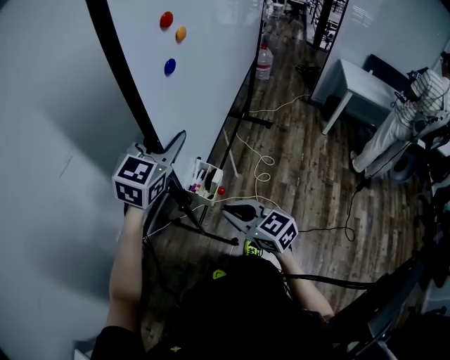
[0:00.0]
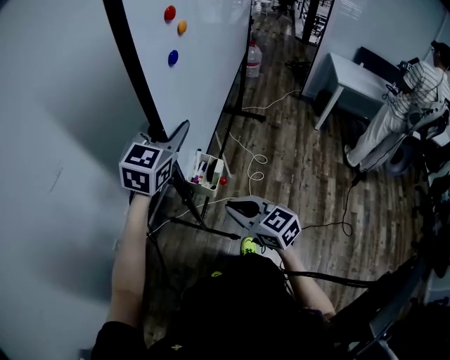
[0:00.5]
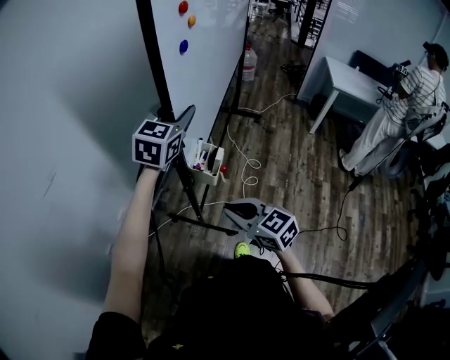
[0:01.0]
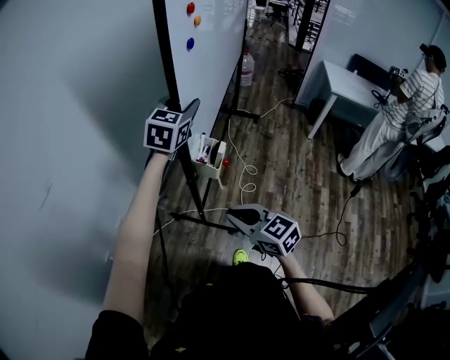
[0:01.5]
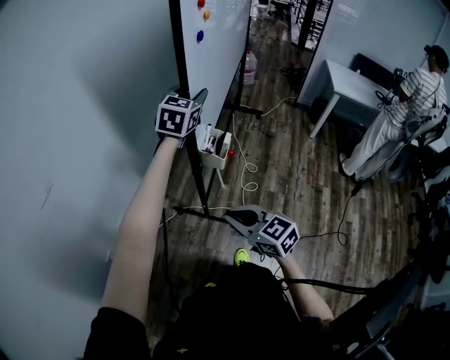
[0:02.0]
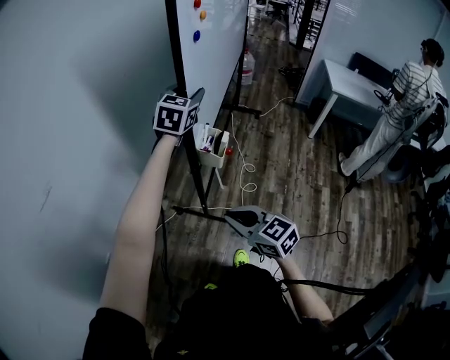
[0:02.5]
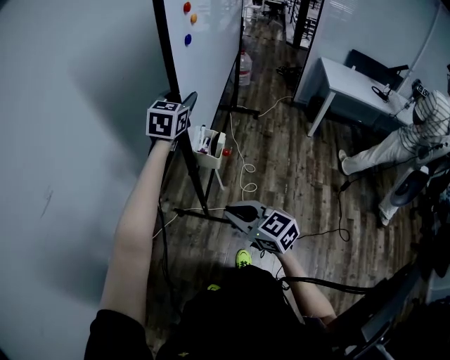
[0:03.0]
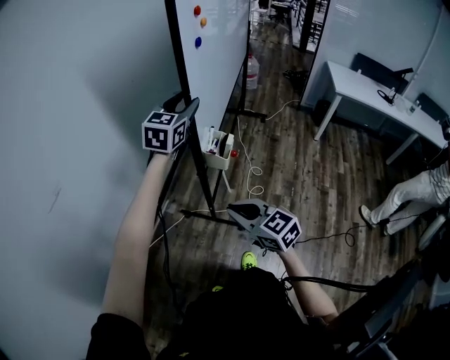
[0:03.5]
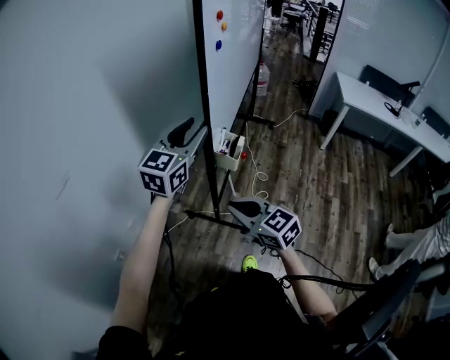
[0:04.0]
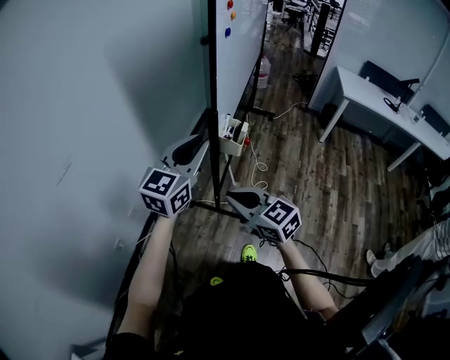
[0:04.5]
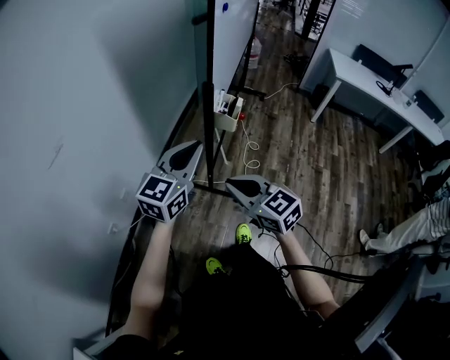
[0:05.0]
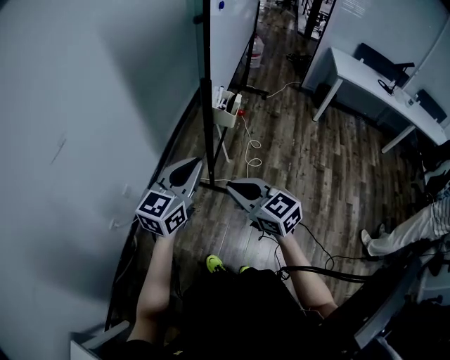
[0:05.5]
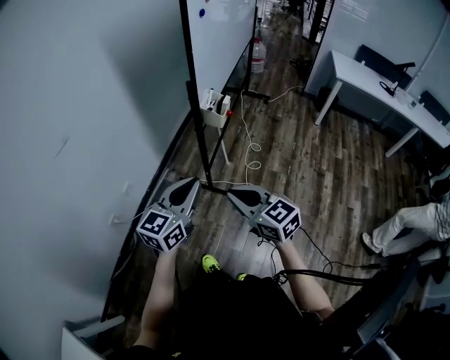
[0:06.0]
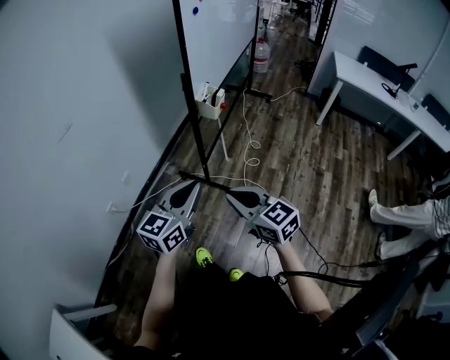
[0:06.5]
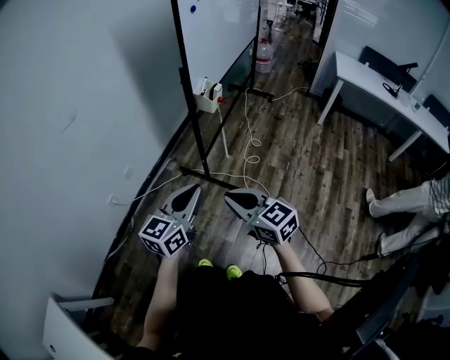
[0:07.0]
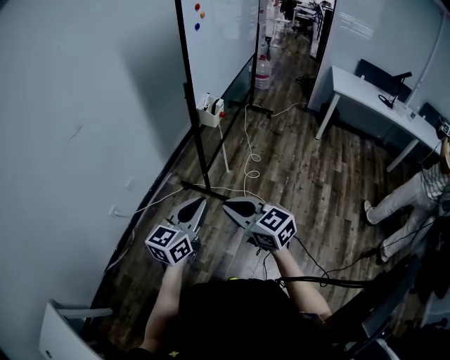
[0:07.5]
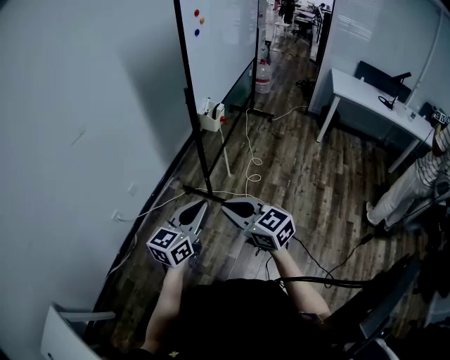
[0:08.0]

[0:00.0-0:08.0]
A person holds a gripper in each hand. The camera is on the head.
0:00.0 to 0:02.0: The right gripper is displaced to the right by about 10 cm. The left gripper goes about 25 cm forward and to the right.
0:02.0 to 0:04.0: The left gripper travels backward and to the left by some 15 cm.
0:04.0 to 0:06.0: The right gripper travels backward by some 15 cm. The left gripper moves backward and downward, roughly 30 cm, and closes up.
0:06.0 to 0:08.0: Both grippers move backward, about 15 cm.

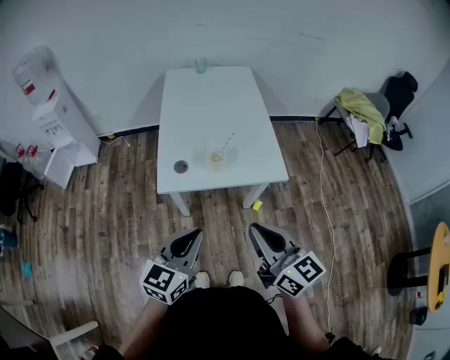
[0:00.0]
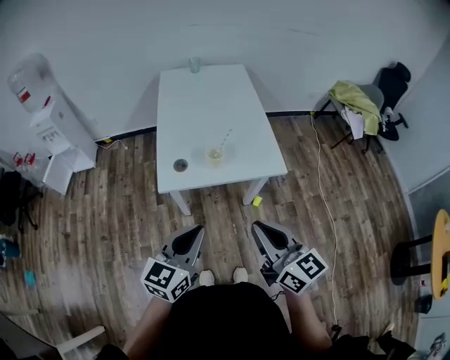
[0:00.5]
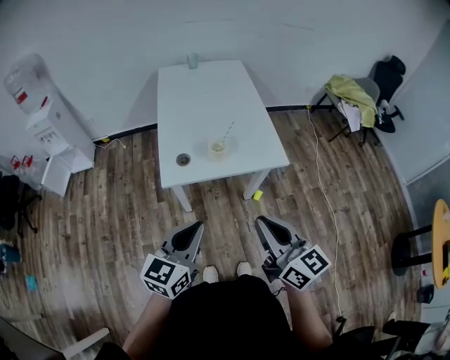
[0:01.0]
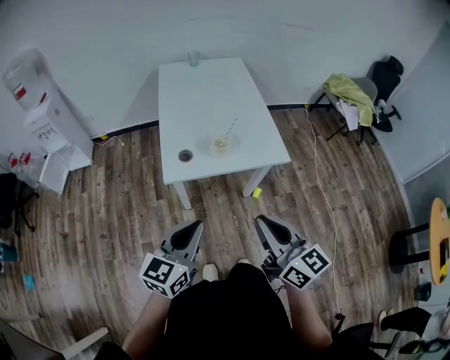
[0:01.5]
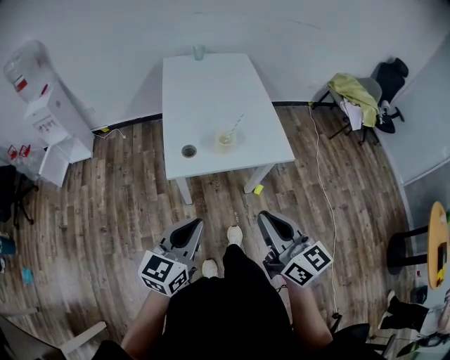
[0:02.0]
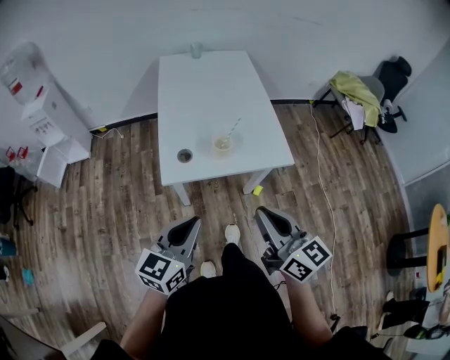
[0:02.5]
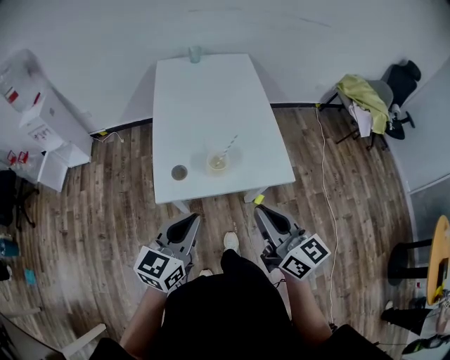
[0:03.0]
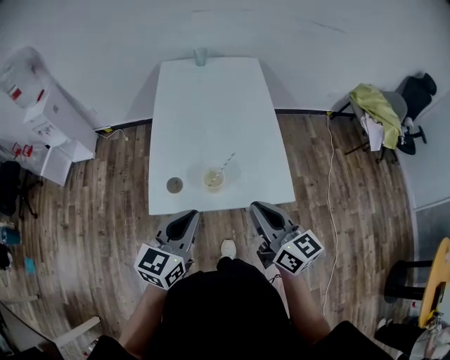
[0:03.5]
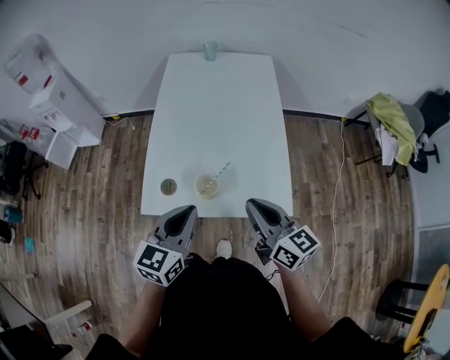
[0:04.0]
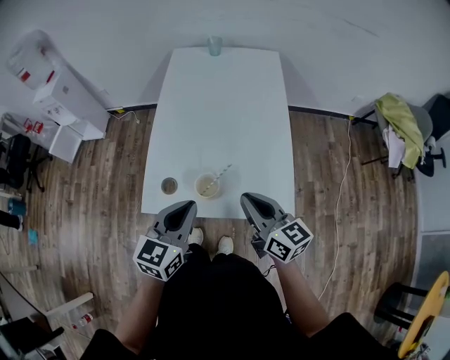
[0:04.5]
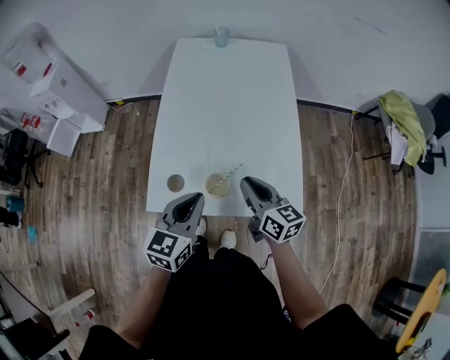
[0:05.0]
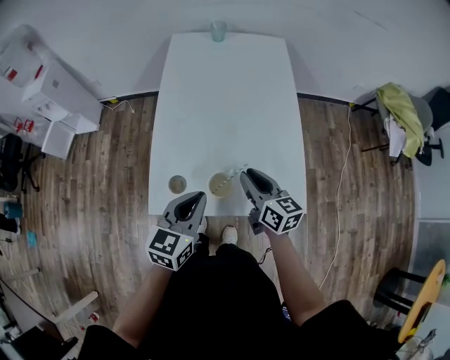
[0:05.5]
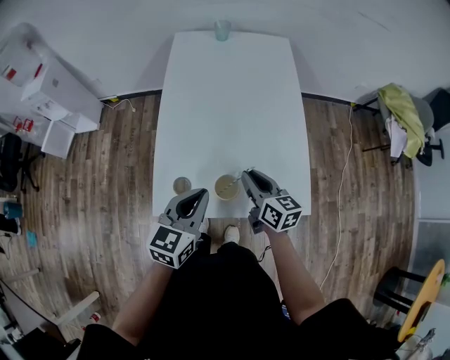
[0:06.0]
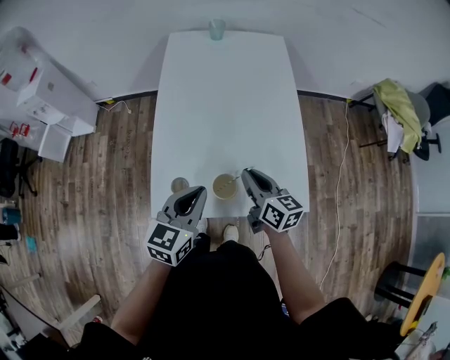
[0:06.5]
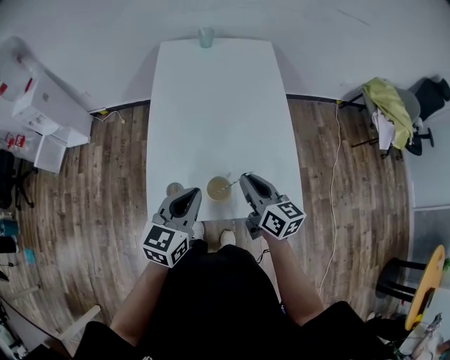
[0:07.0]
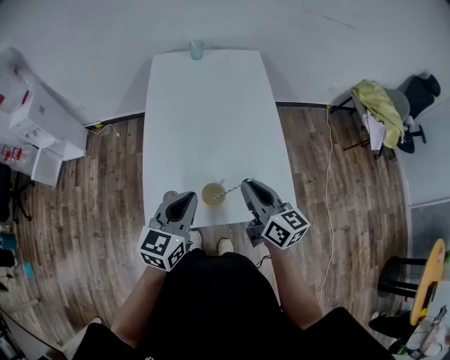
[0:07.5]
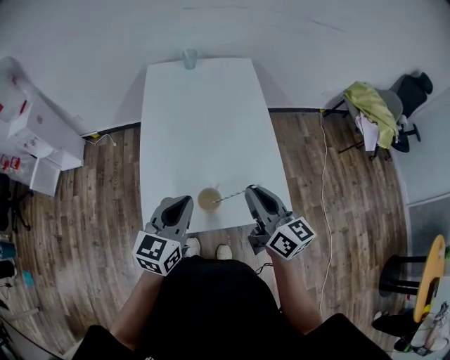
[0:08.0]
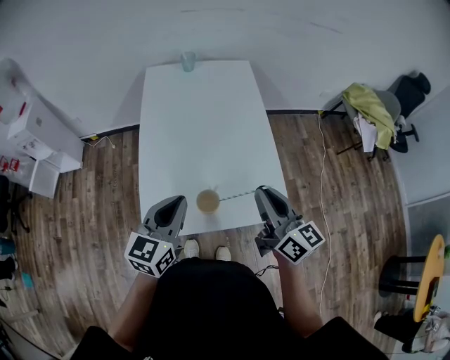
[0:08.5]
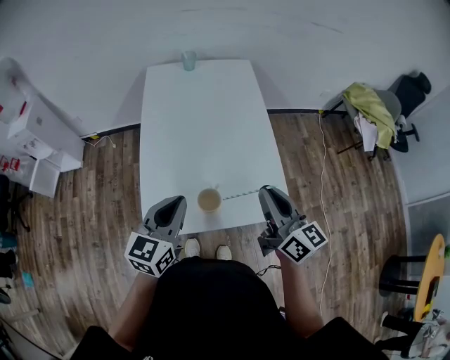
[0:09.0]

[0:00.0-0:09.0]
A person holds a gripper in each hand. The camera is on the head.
0:00.0 to 0:02.0: The left gripper heads to the left, covering approximately 5 cm; the right gripper moves about 5 cm.
0:02.0 to 0:04.5: The right gripper moves forward, some 30 cm. The left gripper moves forward and to the right, roughly 30 cm.
0:04.5 to 0:07.0: The left gripper shifts some 5 cm forward; the right gripper goes roughly 10 cm forward and downward.
0:07.0 to 0:09.0: The right gripper heads upward and to the right, covering approximately 15 cm, while the left gripper shifts by some 5 cm.

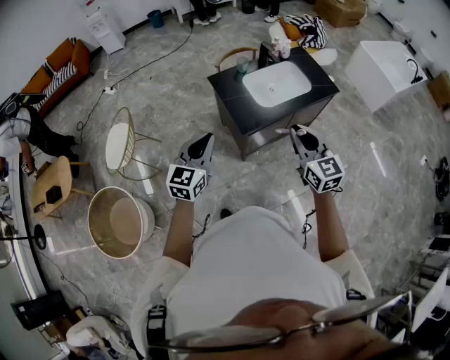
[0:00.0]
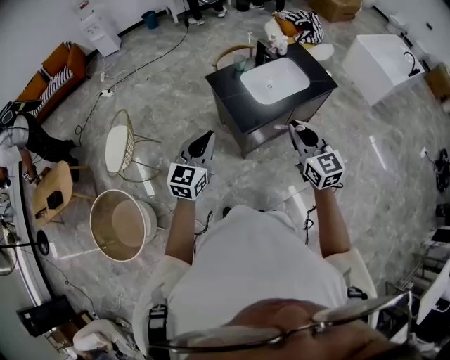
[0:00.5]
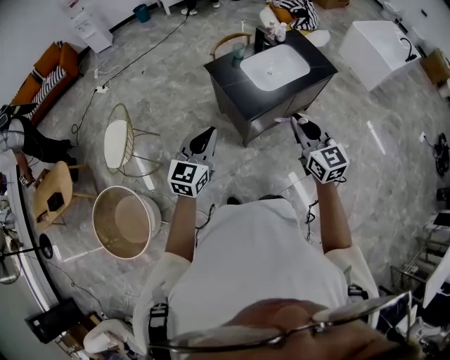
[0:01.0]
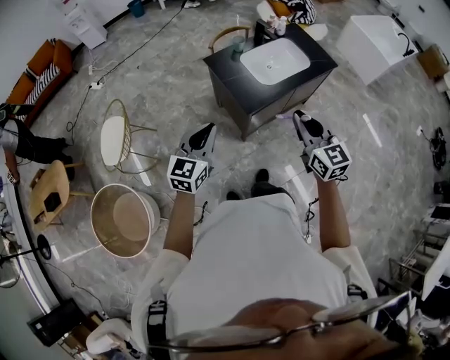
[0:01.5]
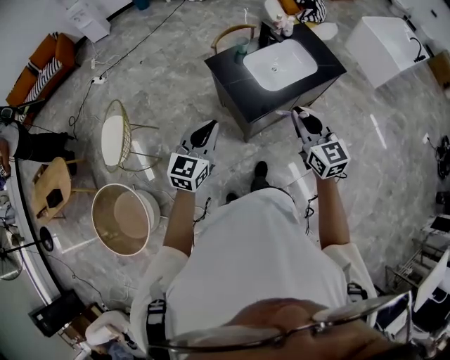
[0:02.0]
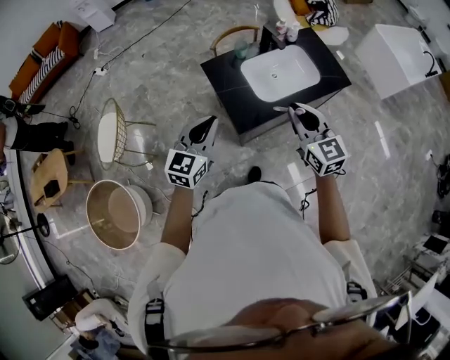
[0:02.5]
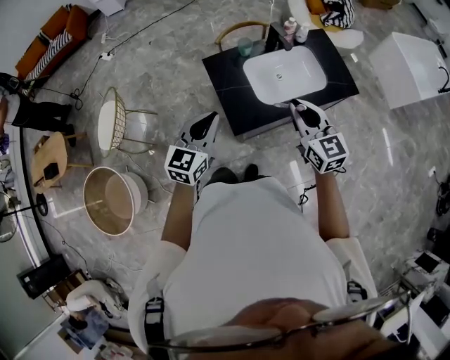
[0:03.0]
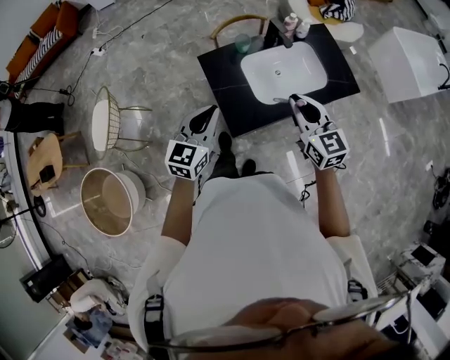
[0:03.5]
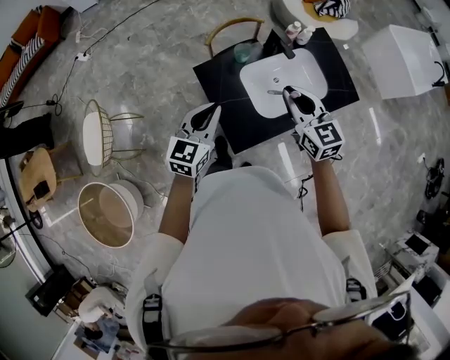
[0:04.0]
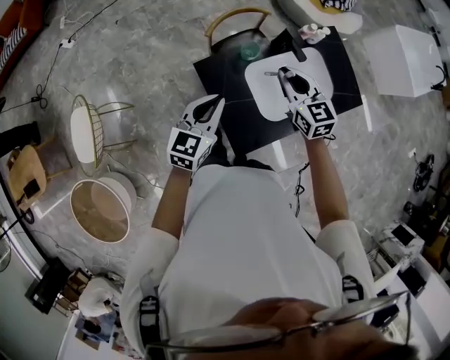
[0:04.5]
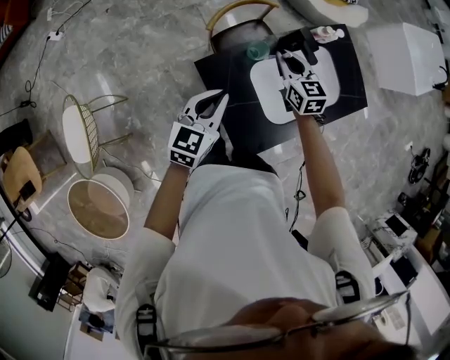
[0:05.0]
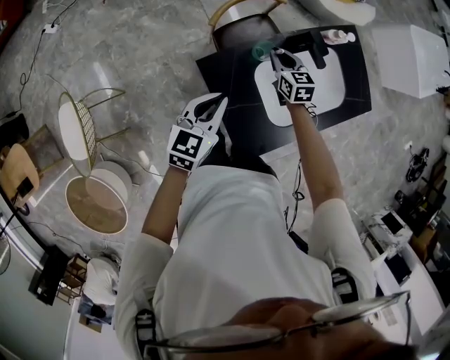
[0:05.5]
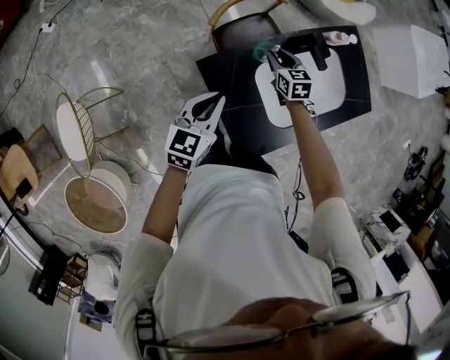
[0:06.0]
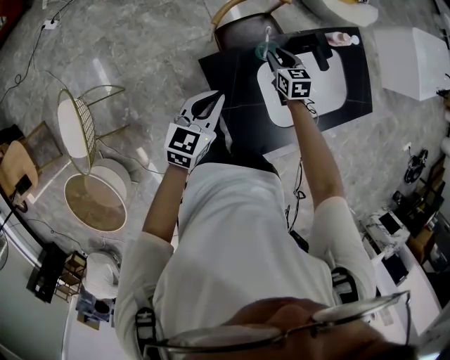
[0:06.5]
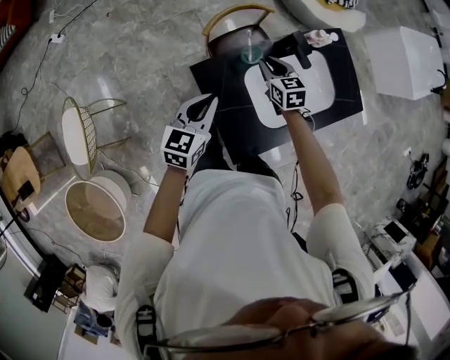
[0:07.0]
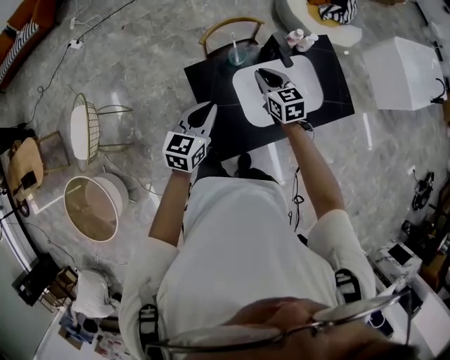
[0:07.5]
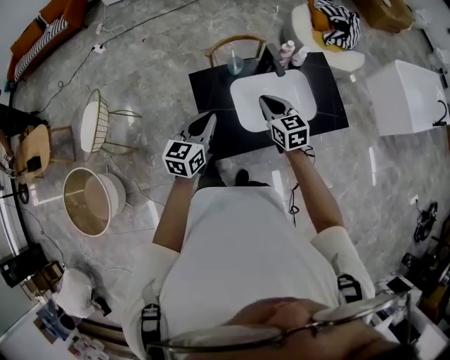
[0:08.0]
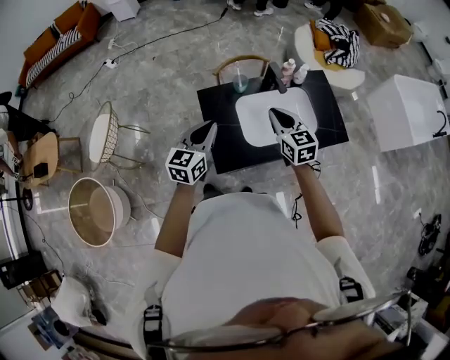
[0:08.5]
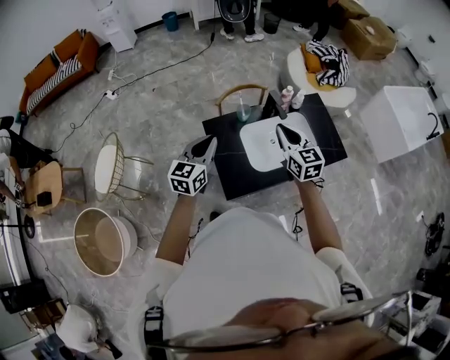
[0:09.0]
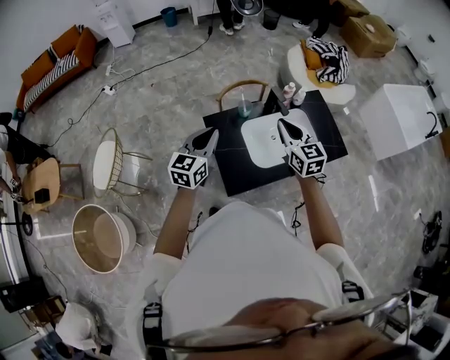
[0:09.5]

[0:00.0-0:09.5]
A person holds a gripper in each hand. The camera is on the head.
0:00.0 to 0:02.0: The grippers both shift forward by some 5 cm.
0:02.0 to 0:04.0: Both grippers move forward, roughly 30 cm.
0:04.0 to 0:05.5: The right gripper shifts about 35 cm downward and forward, and swivels about 20 degrees. Meanwhile the left gripper is displaced forward, downward and to the left by roughly 20 cm.
0:05.5 to 0:07.5: The right gripper goes about 15 cm upward and backward, while the left gripper moves backward, to the right and upward, approximately 10 cm.
0:07.5 to 0:09.5: The right gripper is displaced upward and backward by approximately 20 cm; the left gripper goes some 10 cm upward.
